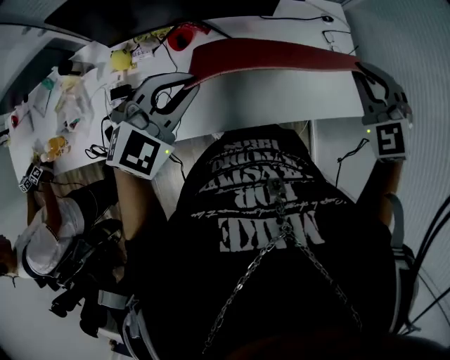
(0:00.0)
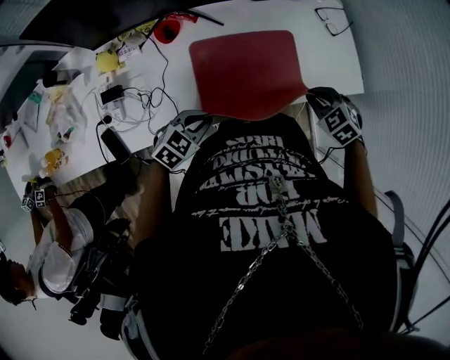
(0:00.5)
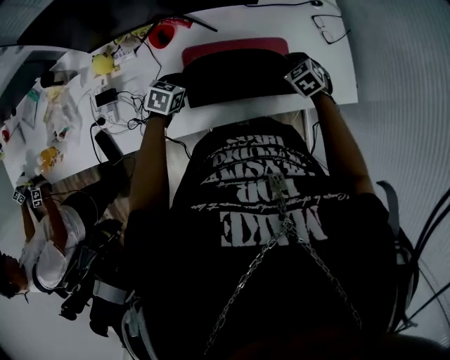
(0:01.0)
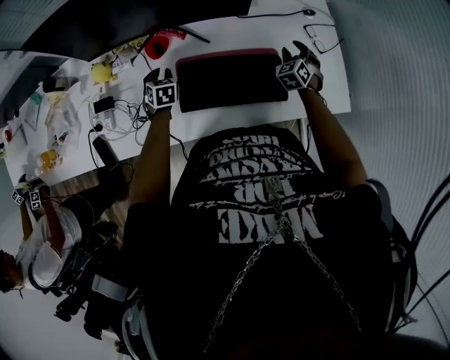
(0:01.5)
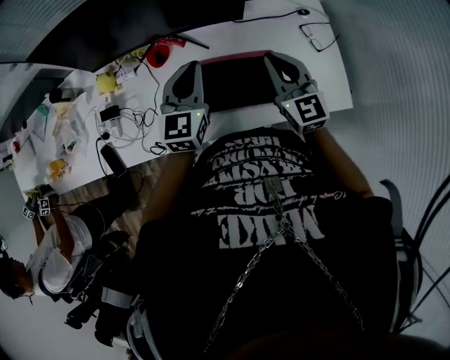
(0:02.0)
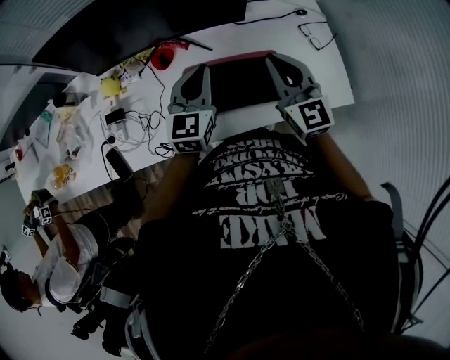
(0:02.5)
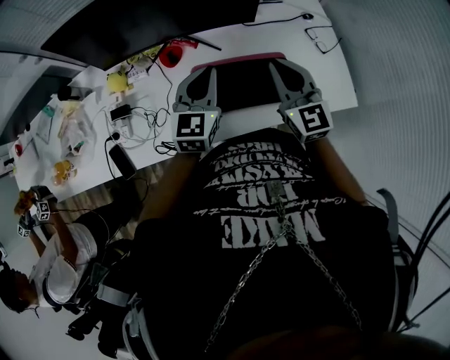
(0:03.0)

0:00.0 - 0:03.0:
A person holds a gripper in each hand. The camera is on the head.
0:00.0 - 0:01.5: The right gripper shifts about 35 cm downward and forward, rotates about 30 degrees, and opens up; the left gripper goes about 35 cm downward, and changes its angle by some 60 degrees.
0:01.5 - 0:03.0: The right gripper moves upward, to the left and backward, roughly 35 cm, tilts its fingers roughly 30 degrees upward, and closes its fingers. The left gripper goes about 30 cm upward and to the right, tilts its fingers roughly 40 degrees upward, and closes.

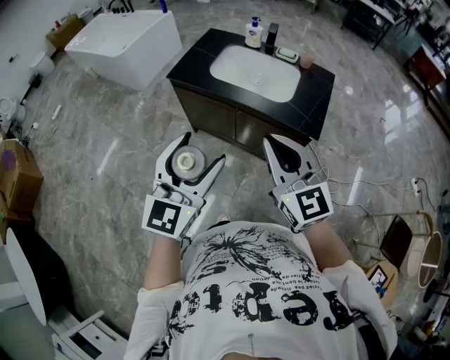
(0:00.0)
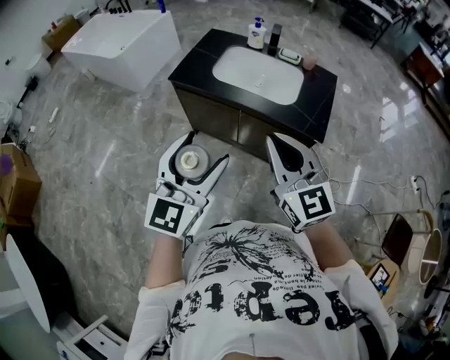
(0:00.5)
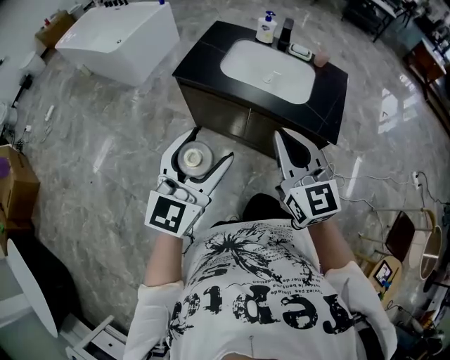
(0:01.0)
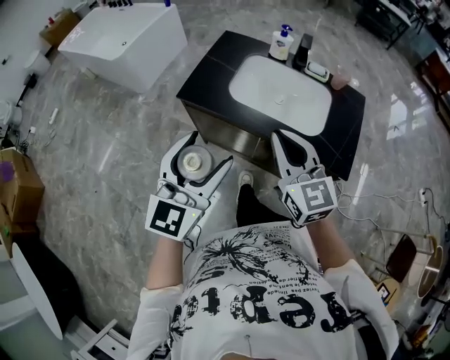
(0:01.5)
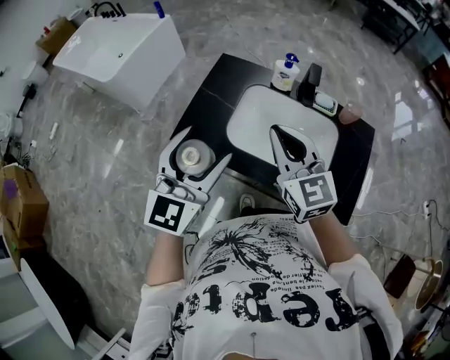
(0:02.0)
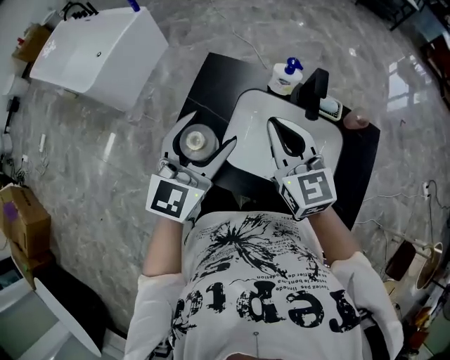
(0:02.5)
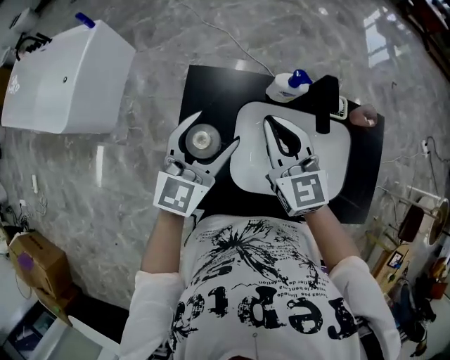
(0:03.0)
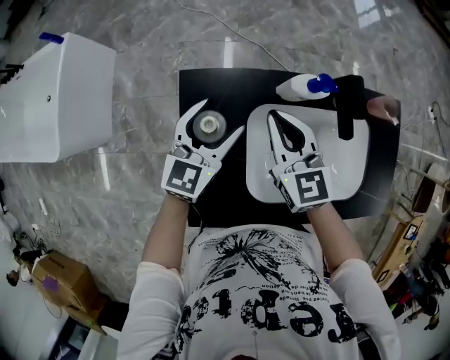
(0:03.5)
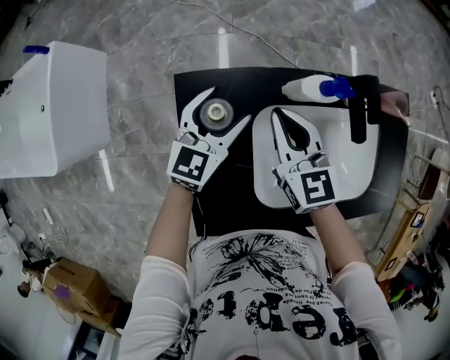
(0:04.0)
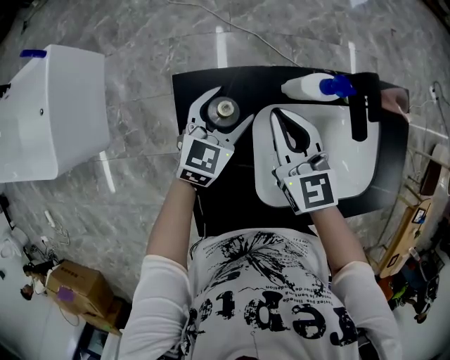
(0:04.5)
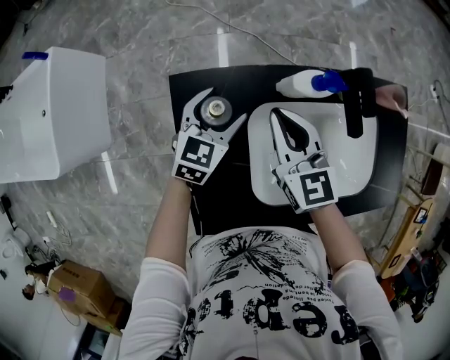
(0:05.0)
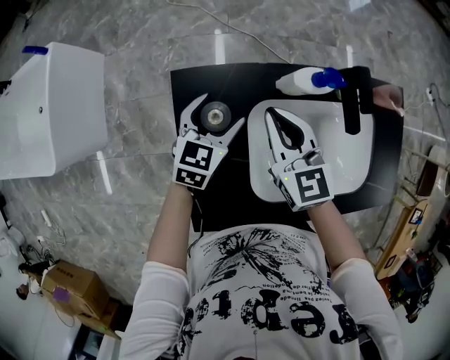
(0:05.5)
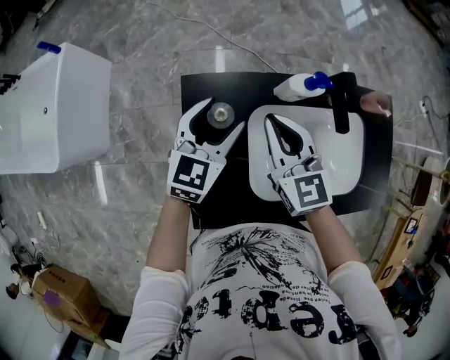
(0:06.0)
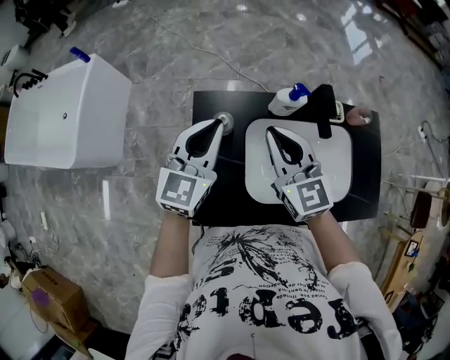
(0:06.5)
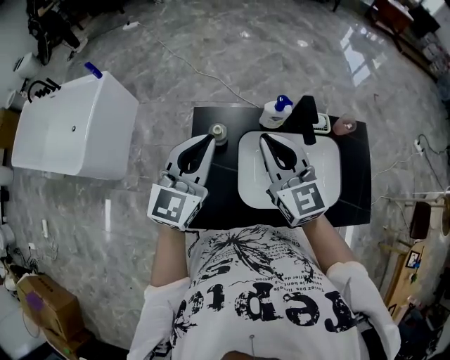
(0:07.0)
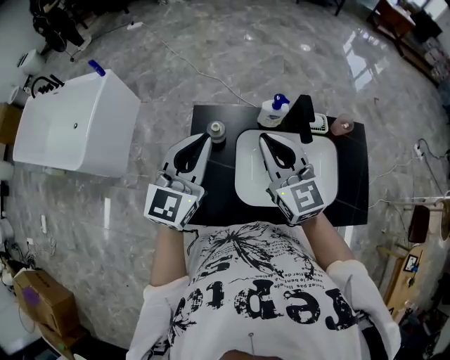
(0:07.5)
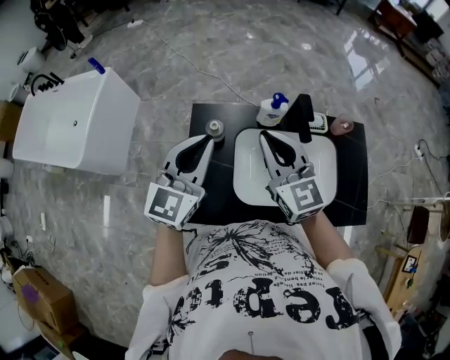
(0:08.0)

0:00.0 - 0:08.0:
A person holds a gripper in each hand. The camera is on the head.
0:00.0 - 0:02.0: The two grippers travel together, forward, some 50 cm.
0:02.0 - 0:04.0: The left gripper changes place by roughly 60 cm, and rotates about 40 degrees, while the right gripper ends up about 50 cm from where it was, and changes its angle by roughly 30 degrees.
0:04.0 - 0:06.0: Both grippers move upward and backward, roughly 10 cm.
0:06.0 - 0:08.0: The grippers both shift upward and backward by approximately 25 cm. The left gripper closes.

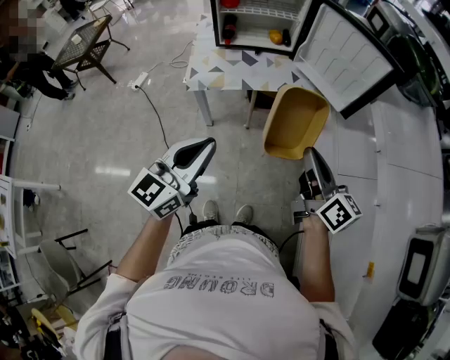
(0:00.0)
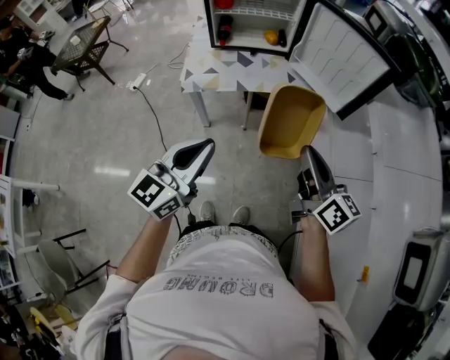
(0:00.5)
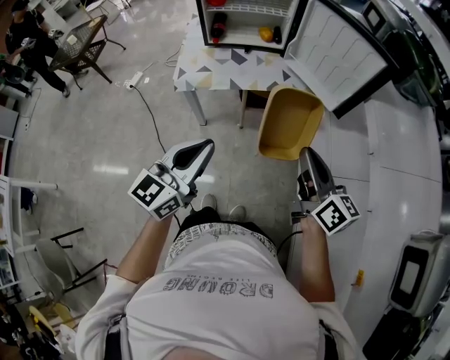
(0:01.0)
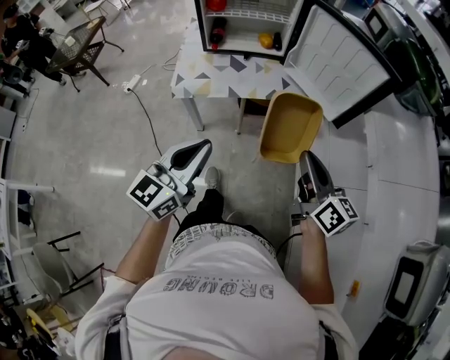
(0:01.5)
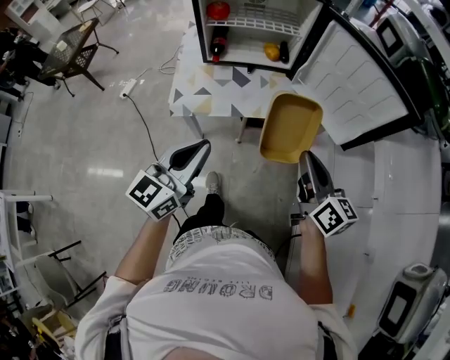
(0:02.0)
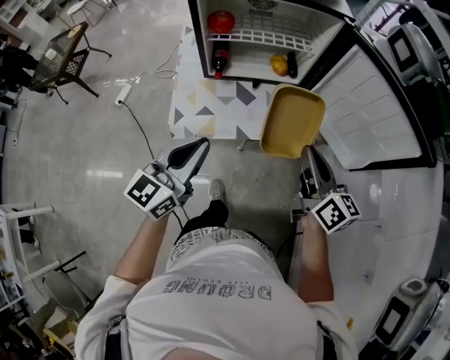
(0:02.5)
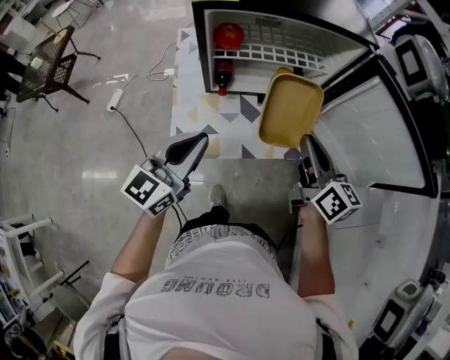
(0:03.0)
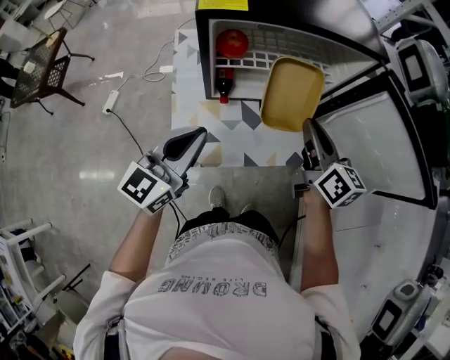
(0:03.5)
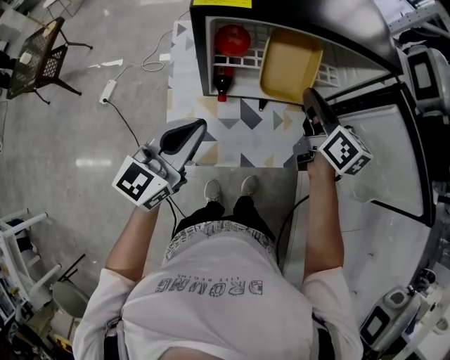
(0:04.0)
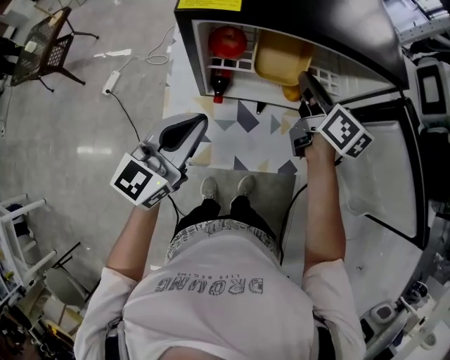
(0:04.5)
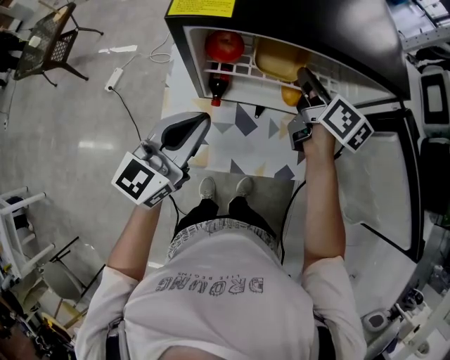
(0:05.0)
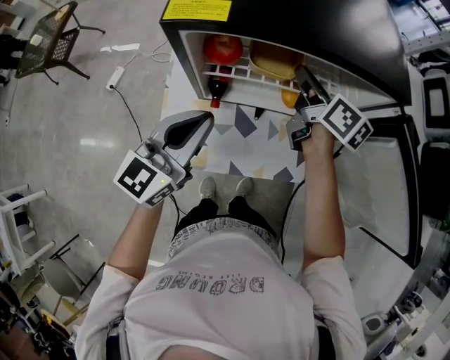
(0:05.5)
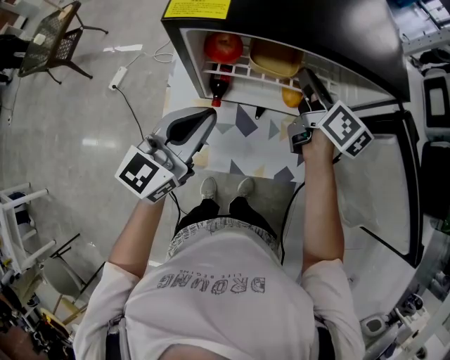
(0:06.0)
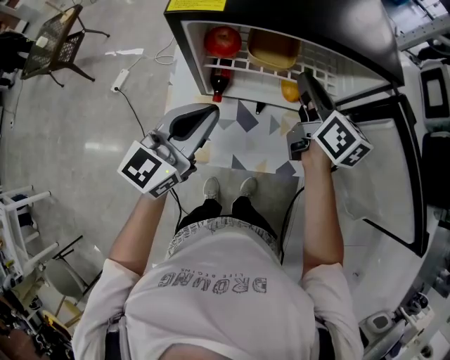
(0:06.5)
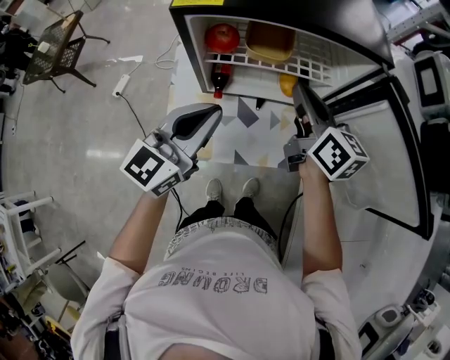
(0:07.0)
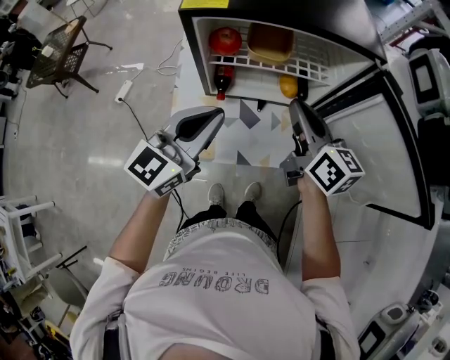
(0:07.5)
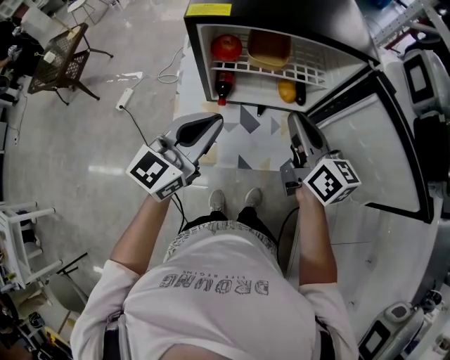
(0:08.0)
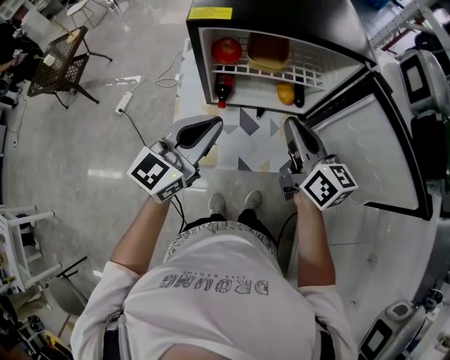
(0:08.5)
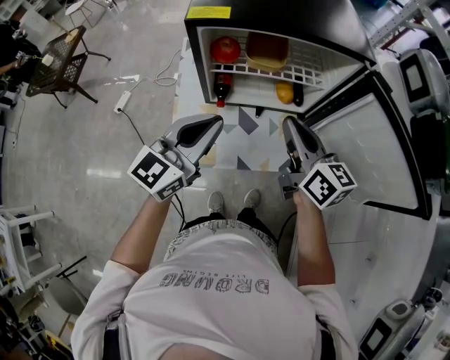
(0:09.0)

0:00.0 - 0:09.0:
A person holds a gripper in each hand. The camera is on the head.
0:00.0 - 0:02.0: The two grippers go approximately 15 cm forward.
0:02.0 - 0:04.5: The left gripper heads forward, covering about 30 cm; the right gripper heads forward and to the left, covering roughly 50 cm.
0:04.5 - 0:07.0: The right gripper moves backward, roughly 10 cm; the left gripper shifts by some 5 cm.
0:07.0 - 0:09.0: The right gripper shifts roughly 10 cm backward.

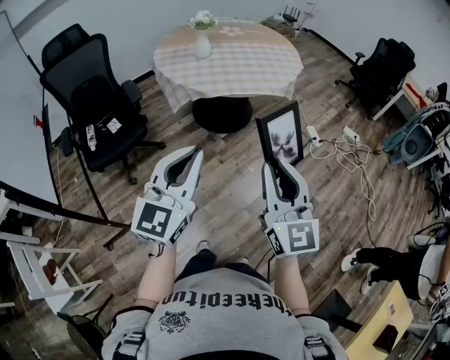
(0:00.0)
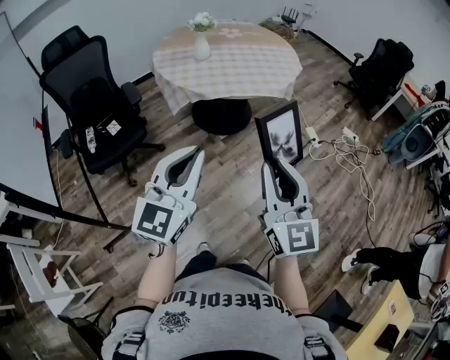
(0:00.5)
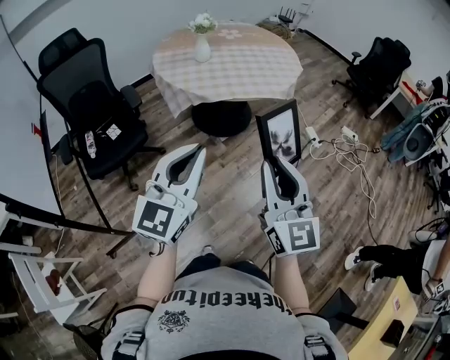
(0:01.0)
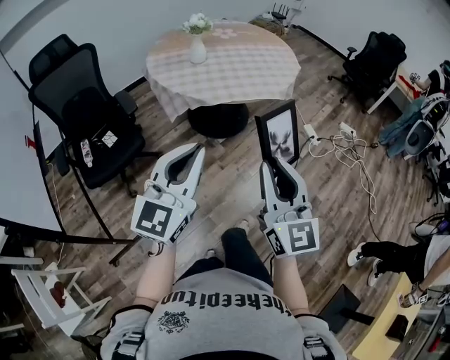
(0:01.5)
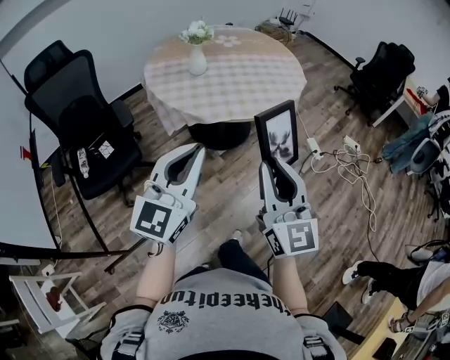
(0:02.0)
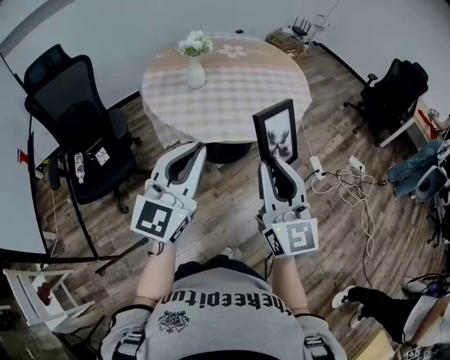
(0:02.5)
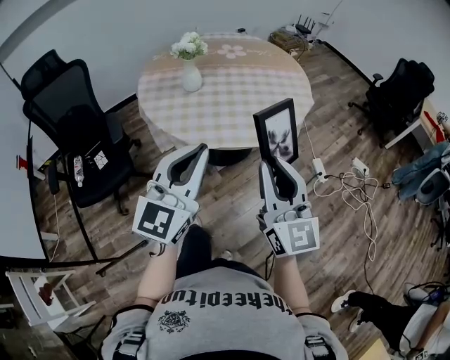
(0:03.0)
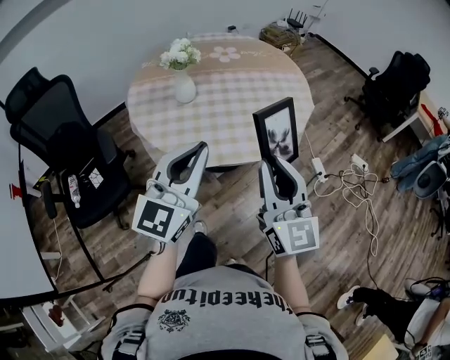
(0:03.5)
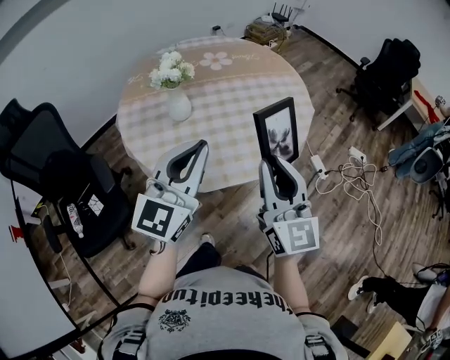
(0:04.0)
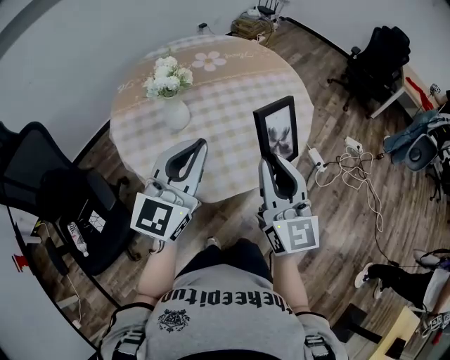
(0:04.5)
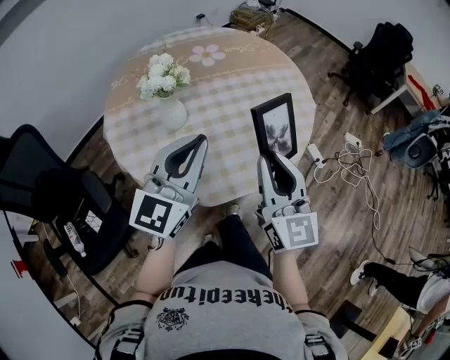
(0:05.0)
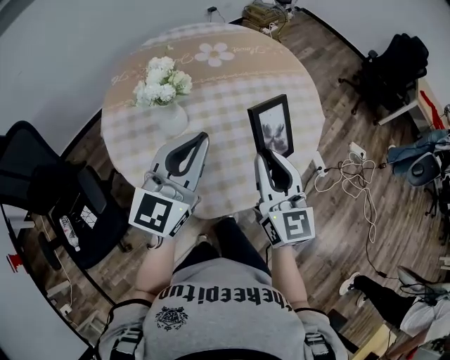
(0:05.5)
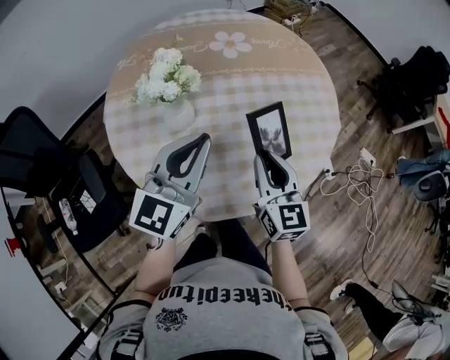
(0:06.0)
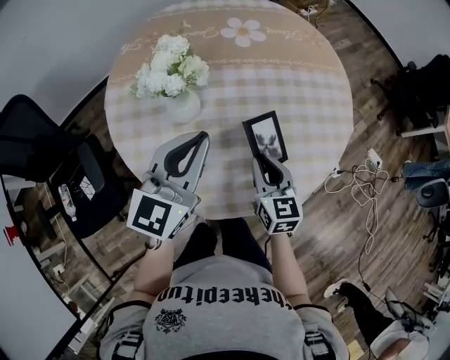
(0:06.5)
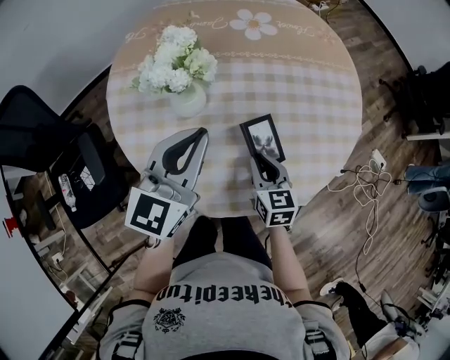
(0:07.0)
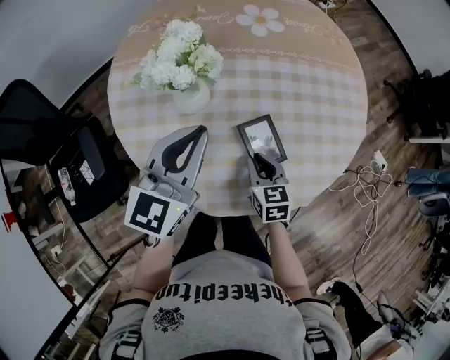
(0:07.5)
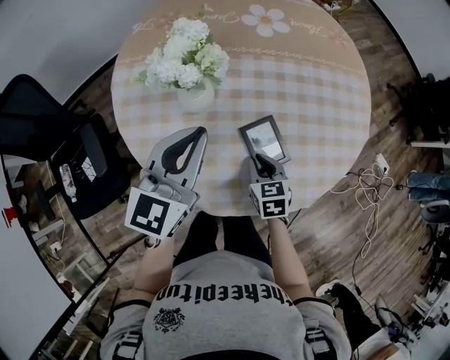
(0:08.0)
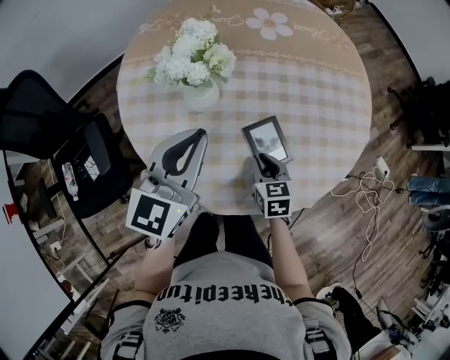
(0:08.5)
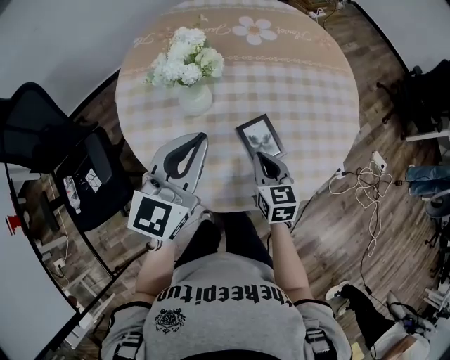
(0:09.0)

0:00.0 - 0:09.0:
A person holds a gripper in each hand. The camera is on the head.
0:00.0 - 0:02.0: Both grippers travel together forward, roughly 15 cm.
0:02.0 - 0:04.5: Both grippers travel together forward, some 30 cm.
0:04.5 - 0:07.0: The left gripper travels forward and downward by some 20 cm, and changes its angle by approximately 20 degrees, while the right gripper is displaced downward and forward by about 35 cm, and tips its fingers downward by approximately 40 degrees.
0:07.0 - 0:09.0: The right gripper travels downward and back again, about 5 cm each way.
